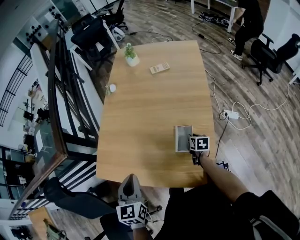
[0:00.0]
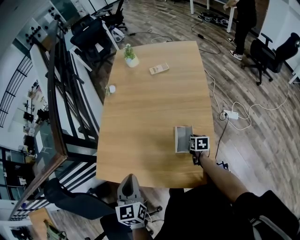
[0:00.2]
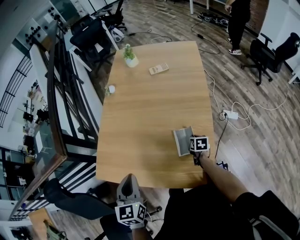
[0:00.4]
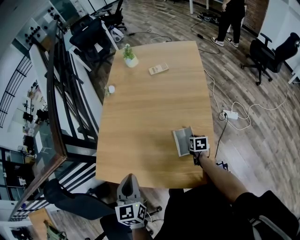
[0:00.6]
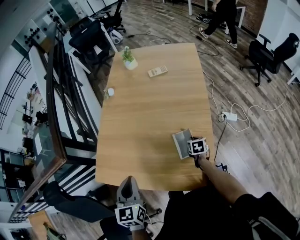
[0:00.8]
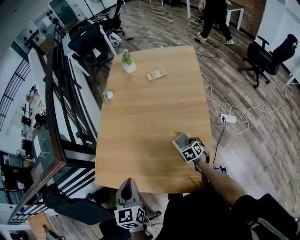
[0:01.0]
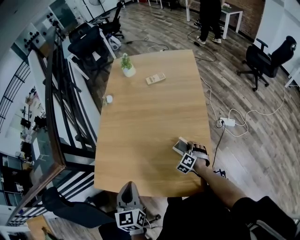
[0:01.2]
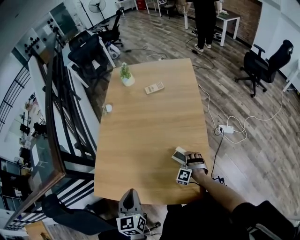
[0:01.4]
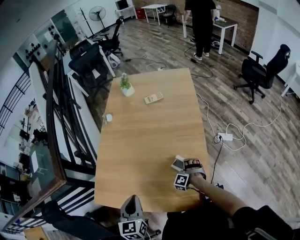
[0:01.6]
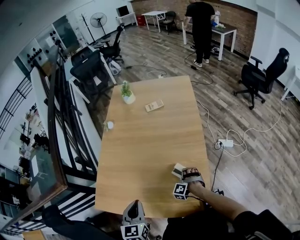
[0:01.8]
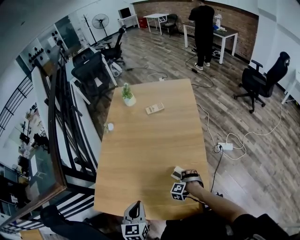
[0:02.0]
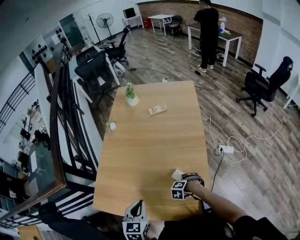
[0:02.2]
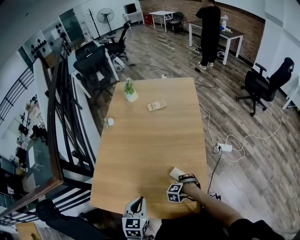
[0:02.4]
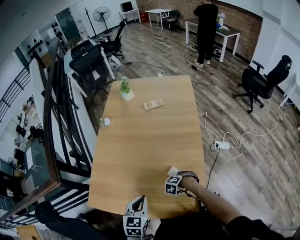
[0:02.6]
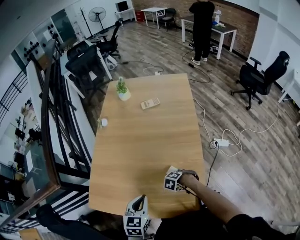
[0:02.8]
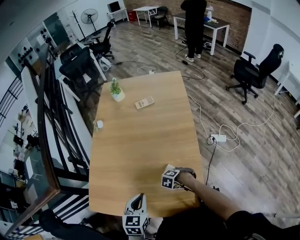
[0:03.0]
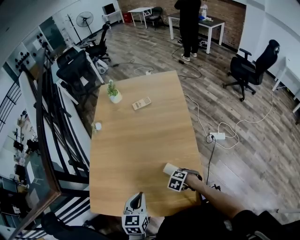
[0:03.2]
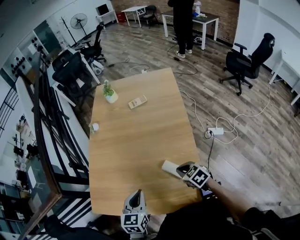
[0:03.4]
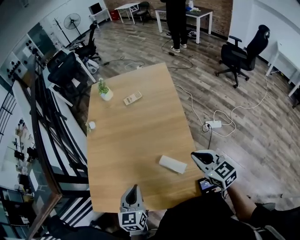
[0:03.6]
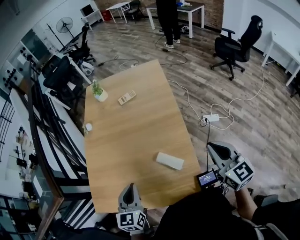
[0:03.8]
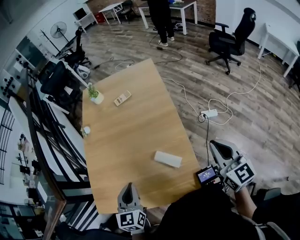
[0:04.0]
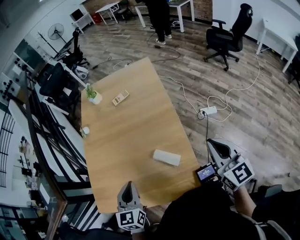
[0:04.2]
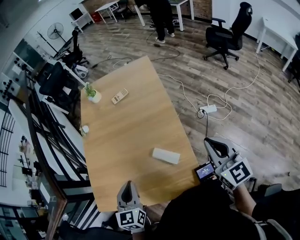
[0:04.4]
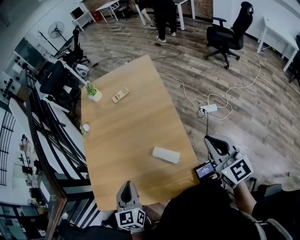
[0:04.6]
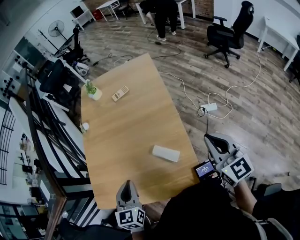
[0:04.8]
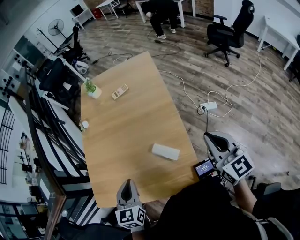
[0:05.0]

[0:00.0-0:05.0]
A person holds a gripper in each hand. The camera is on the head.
0:00.0 to 0:01.6: The right gripper rolls counterclockwise, seen from behind, by roughly 100 degrees.
0:01.6 to 0:03.4: The right gripper moves upward, roughly 15 cm, swivels approximately 80 degrees, and opens, then closes once more. Meanwhile the left gripper moves some 10 cm.
0:03.4 to 0:05.0: The left gripper goes approximately 5 cm upward; the right gripper travels upward and to the right by roughly 30 cm, and points its fingers about 40 degrees further upward.

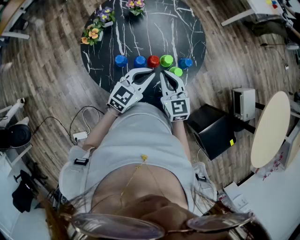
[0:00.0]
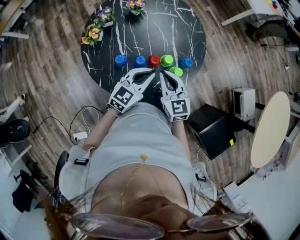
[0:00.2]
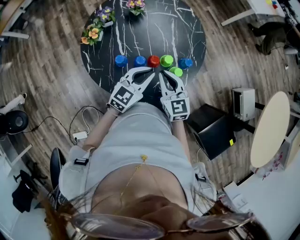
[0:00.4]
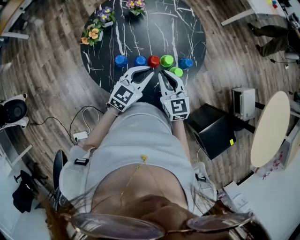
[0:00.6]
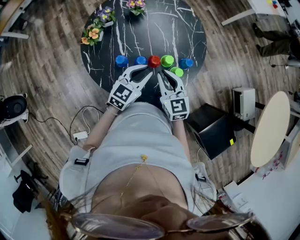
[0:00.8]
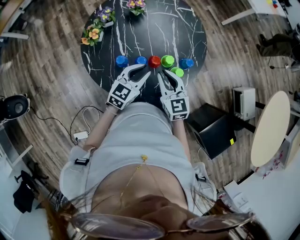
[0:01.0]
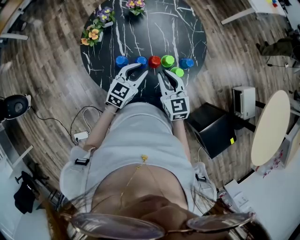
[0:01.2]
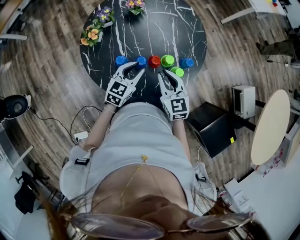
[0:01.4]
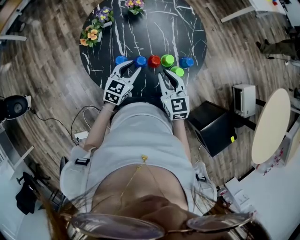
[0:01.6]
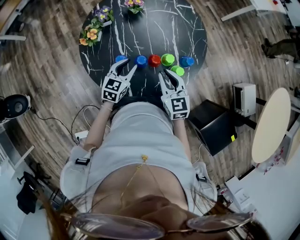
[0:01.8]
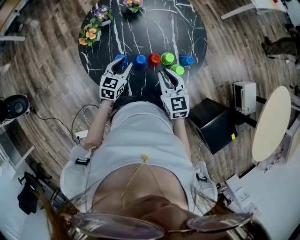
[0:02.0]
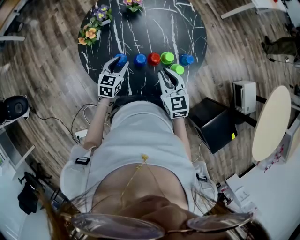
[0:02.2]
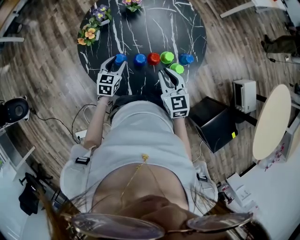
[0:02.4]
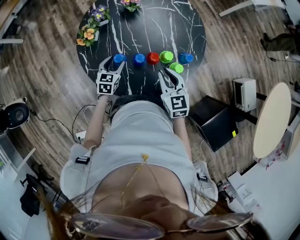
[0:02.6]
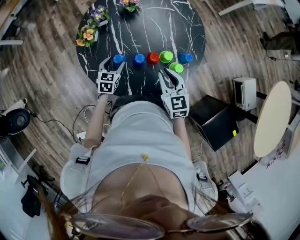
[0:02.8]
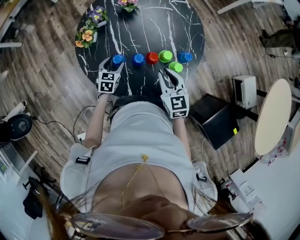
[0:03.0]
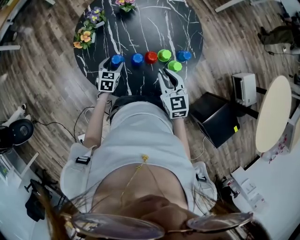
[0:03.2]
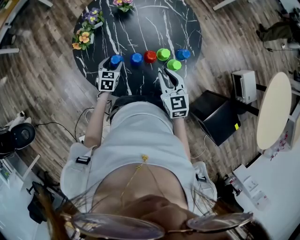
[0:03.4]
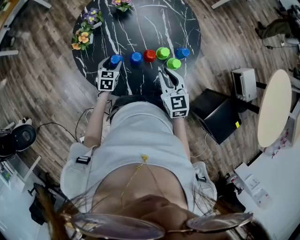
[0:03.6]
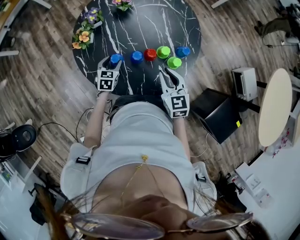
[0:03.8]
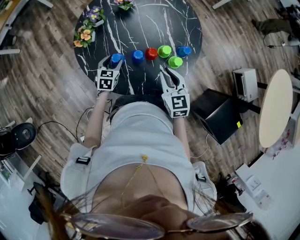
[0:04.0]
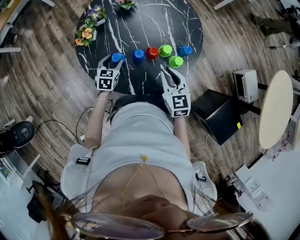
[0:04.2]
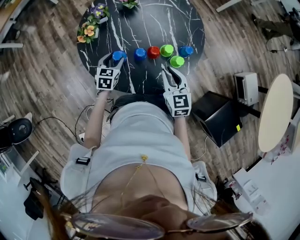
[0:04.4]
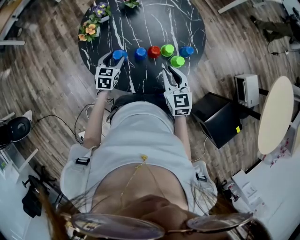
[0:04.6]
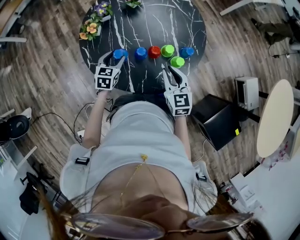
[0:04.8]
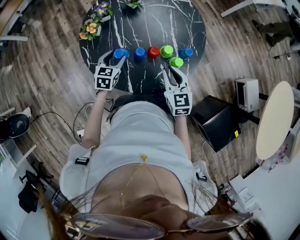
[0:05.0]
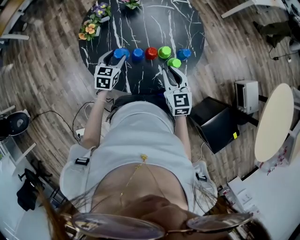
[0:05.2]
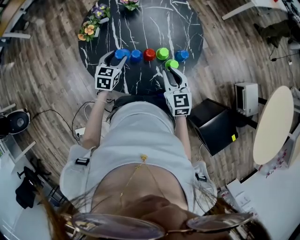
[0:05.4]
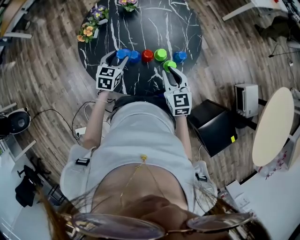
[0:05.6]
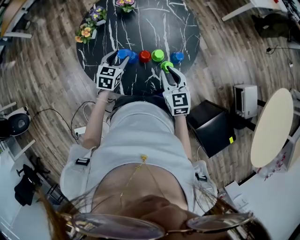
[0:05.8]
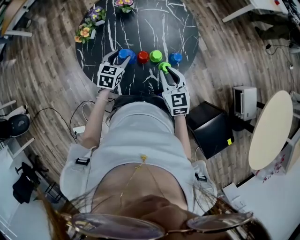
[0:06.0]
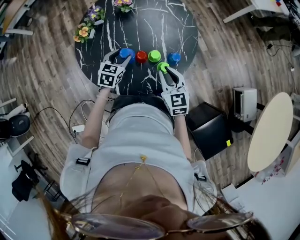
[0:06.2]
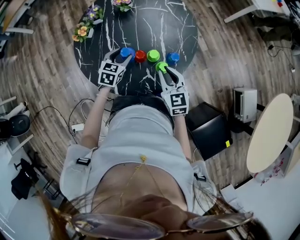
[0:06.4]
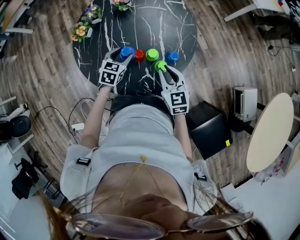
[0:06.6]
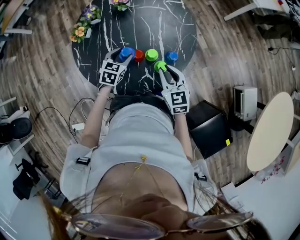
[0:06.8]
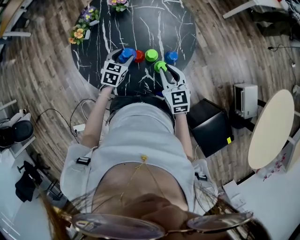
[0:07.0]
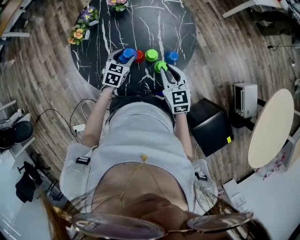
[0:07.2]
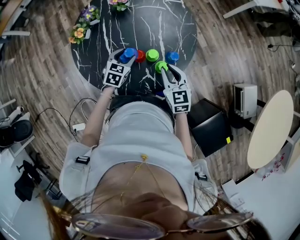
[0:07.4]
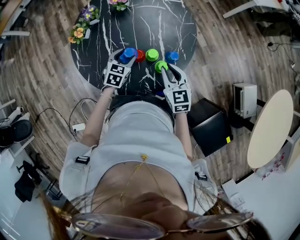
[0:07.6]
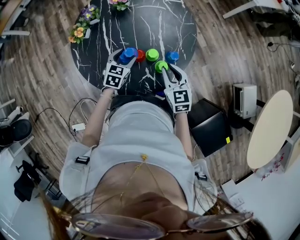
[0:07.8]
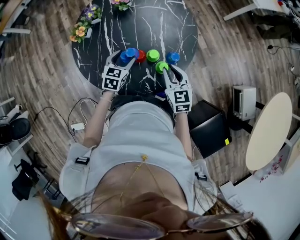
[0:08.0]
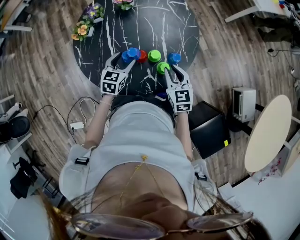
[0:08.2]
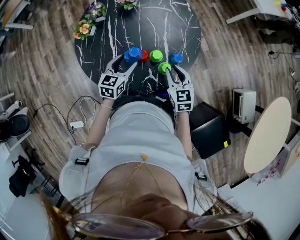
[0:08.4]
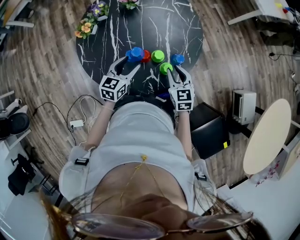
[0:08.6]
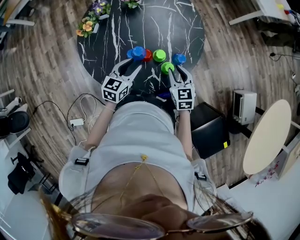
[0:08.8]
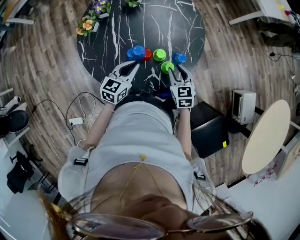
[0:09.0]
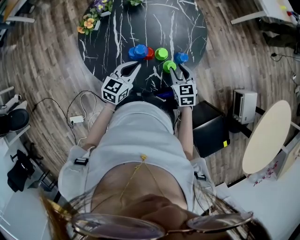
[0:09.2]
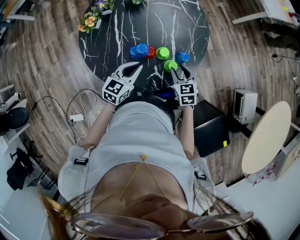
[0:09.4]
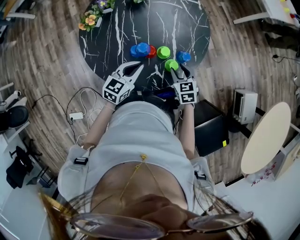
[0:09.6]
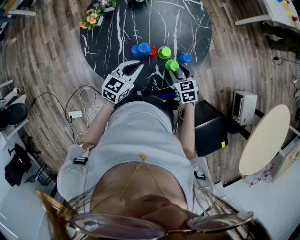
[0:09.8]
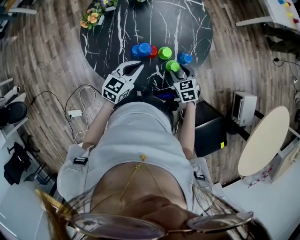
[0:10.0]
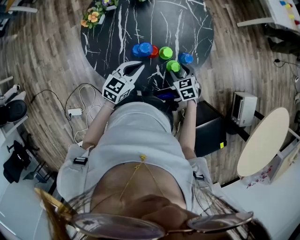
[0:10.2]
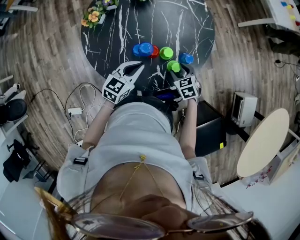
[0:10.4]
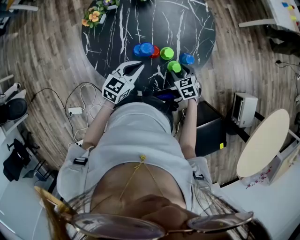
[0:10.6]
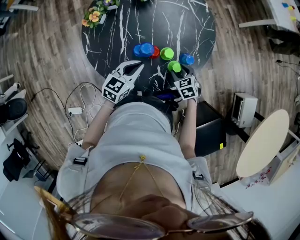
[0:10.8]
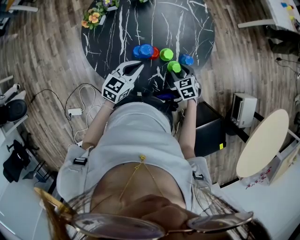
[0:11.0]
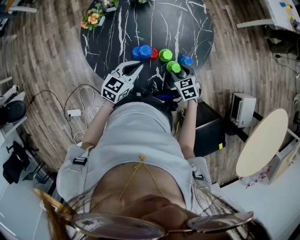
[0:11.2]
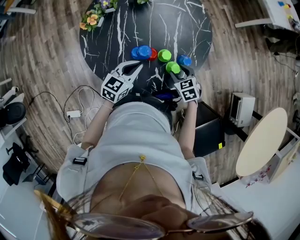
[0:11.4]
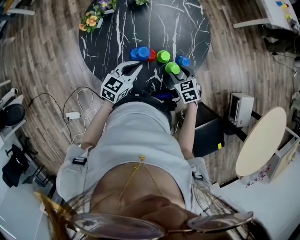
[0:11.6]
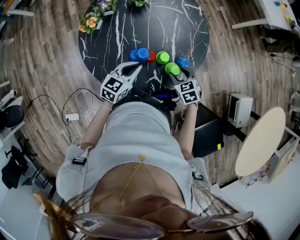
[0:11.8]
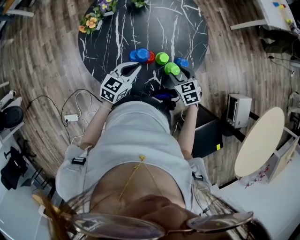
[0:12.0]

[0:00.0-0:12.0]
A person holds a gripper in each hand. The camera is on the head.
0:00.0 to 0:01.6: The left gripper shifts some 10 cm to the left and downward, and opens.
0:01.6 to 0:03.0: The left gripper shifts some 15 cm downward and to the left, turns by approximately 20 degrees, and opens up.
0:03.0 to 0:04.4: The grippers stay close to where they were, moving slightly.
0:04.4 to 0:06.0: The right gripper travels to the right by approximately 5 cm. The left gripper travels to the right and upward by some 10 cm.
0:06.0 to 0:07.6: The left gripper changes place by roughly 5 cm.
0:07.6 to 0:09.0: The right gripper is displaced downward by roughly 5 cm, while the left gripper shifts approximately 10 cm backward and upward, turns by roughly 20 degrees, and closes up.
0:09.0 to 0:10.4: The right gripper shifts approximately 10 cm downward, rotates some 20 degrees, and opens its fingers.
0:10.4 to 0:12.0: The right gripper travels upward by some 5 cm.

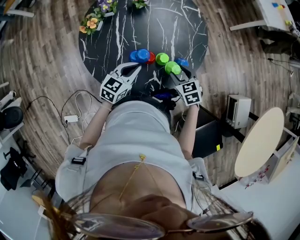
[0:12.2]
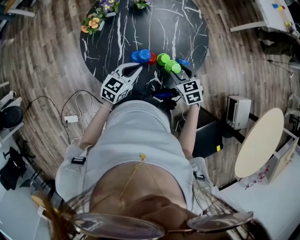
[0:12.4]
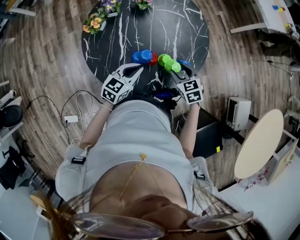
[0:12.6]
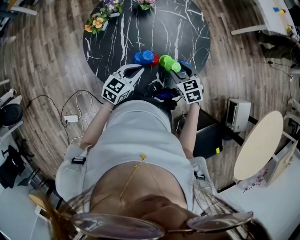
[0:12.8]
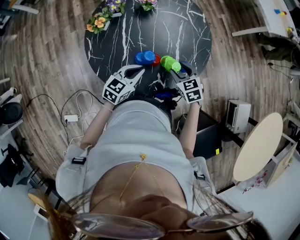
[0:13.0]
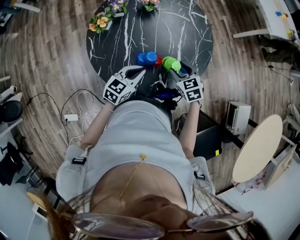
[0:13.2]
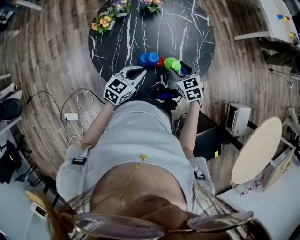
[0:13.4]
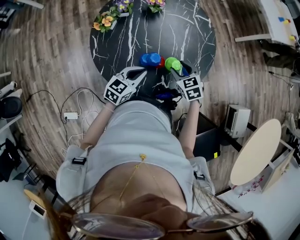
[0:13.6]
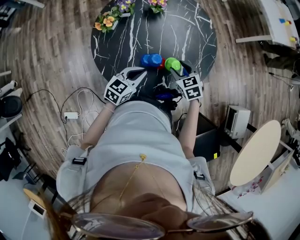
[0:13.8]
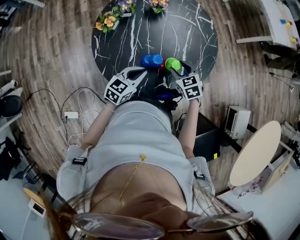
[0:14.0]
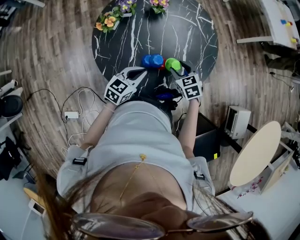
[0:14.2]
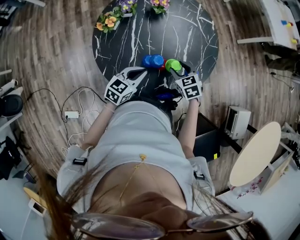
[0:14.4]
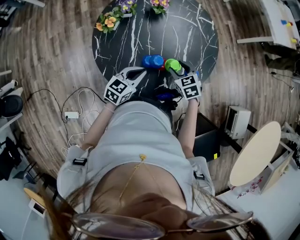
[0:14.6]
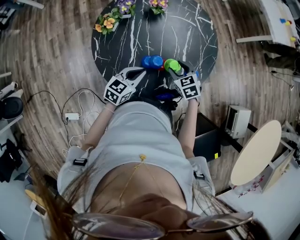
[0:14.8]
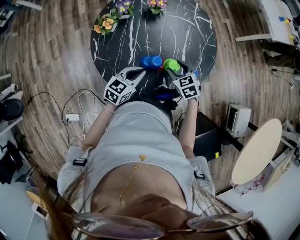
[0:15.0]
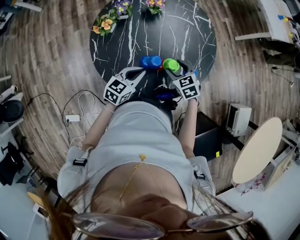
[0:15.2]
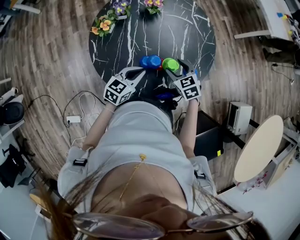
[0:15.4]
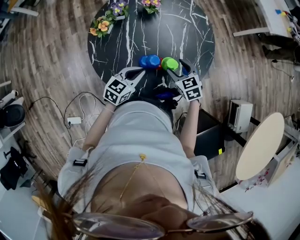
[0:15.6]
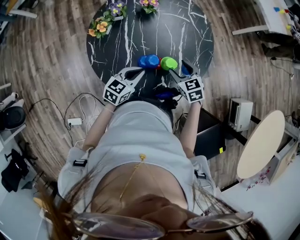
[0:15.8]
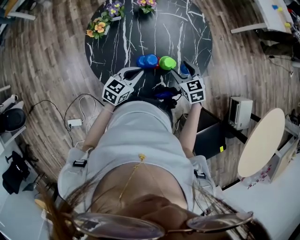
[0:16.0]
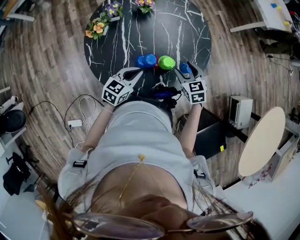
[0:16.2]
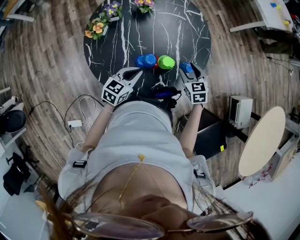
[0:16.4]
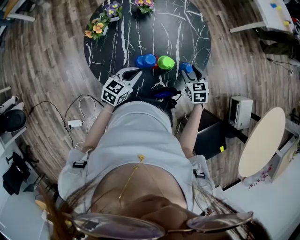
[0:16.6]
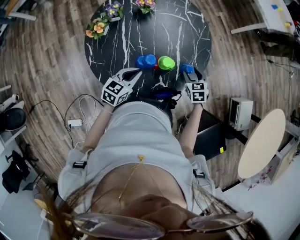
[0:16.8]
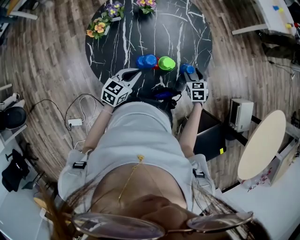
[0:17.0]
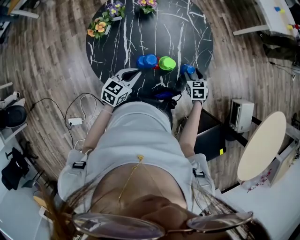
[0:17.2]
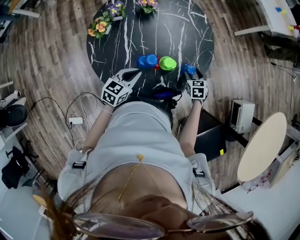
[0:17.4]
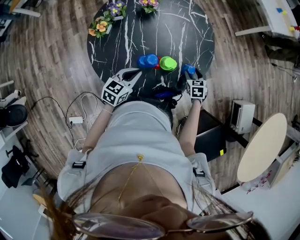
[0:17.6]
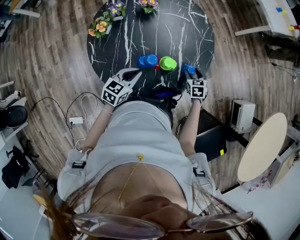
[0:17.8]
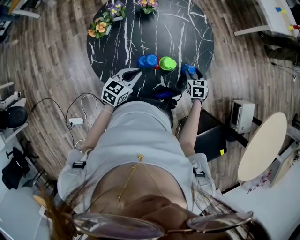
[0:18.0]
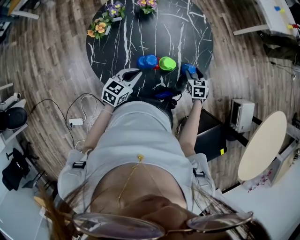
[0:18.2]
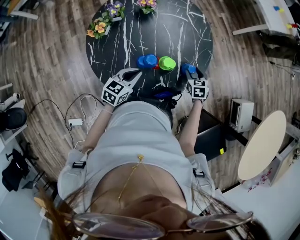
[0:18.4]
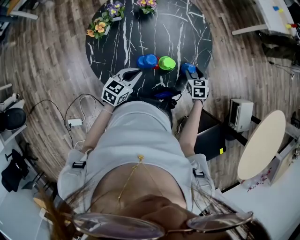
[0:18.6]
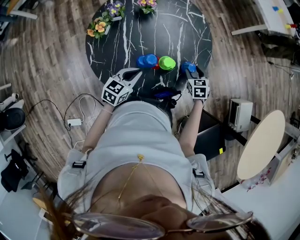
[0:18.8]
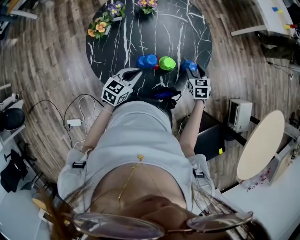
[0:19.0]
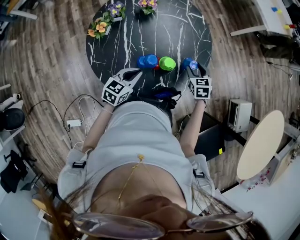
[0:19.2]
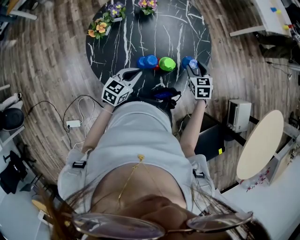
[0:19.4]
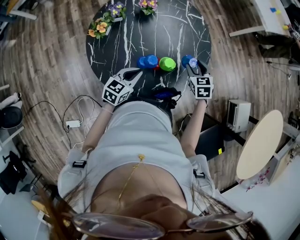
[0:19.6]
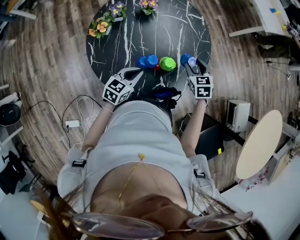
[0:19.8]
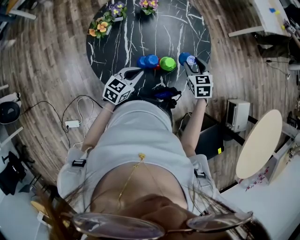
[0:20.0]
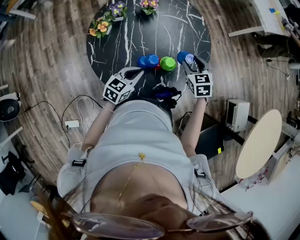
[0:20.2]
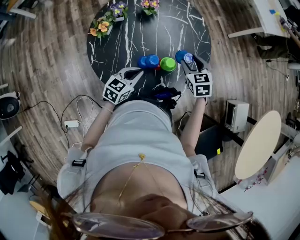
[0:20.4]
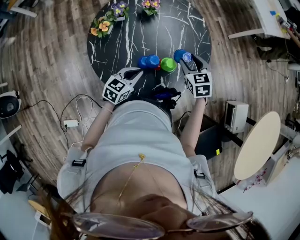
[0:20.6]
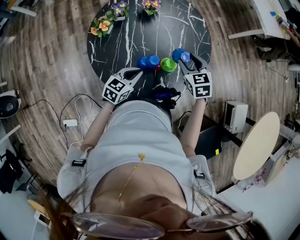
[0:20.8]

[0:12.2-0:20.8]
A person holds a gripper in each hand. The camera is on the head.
0:12.2 to 0:13.6: The right gripper travels to the left by approximately 5 cm.
0:13.6 to 0:15.0: The grippers move only a little.
0:15.0 to 0:16.6: The right gripper moves to the right, approximately 10 cm, and turns by approximately 20 degrees.
0:16.6 to 0:18.0: The right gripper shifts approximately 5 cm downward.
0:18.0 to 0:19.4: The right gripper goes some 10 cm upward.
0:19.4 to 0:20.8: The right gripper shifts about 10 cm to the left and upward.
